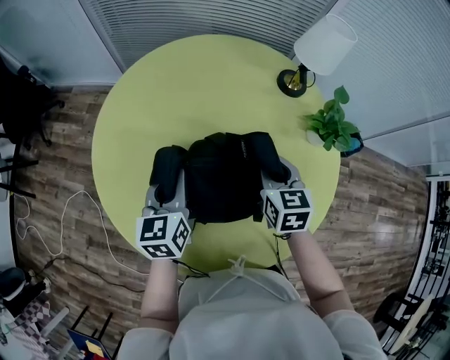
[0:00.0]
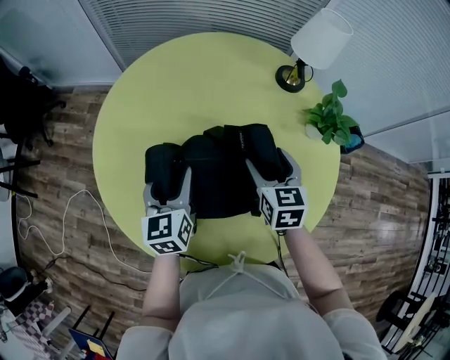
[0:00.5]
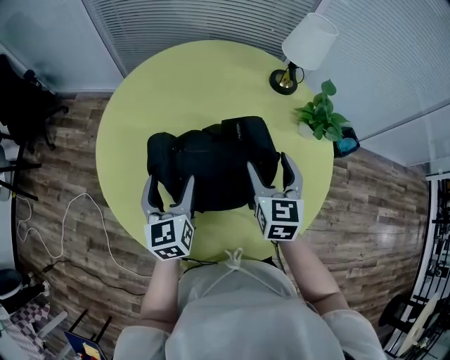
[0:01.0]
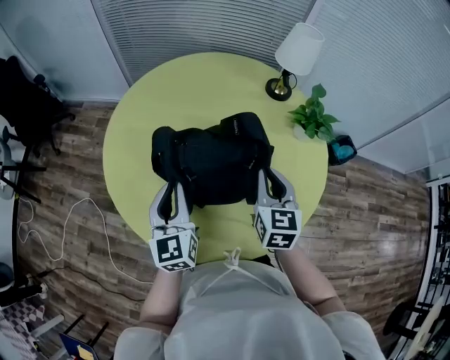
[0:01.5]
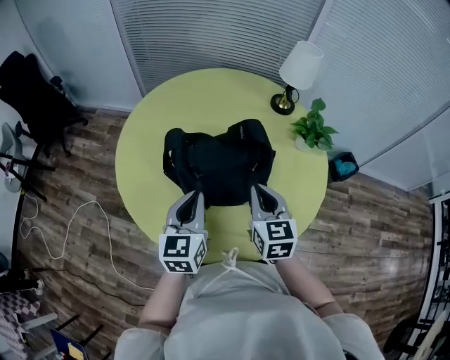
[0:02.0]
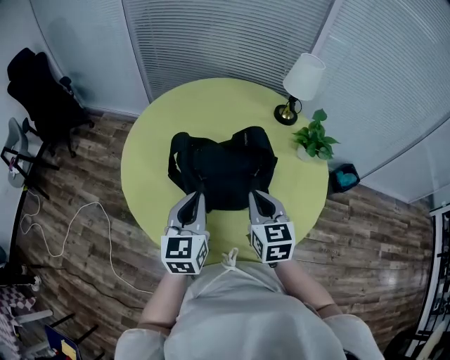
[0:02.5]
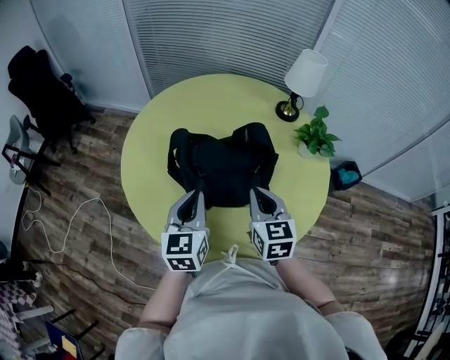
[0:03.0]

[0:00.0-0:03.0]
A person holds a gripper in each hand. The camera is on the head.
0:00.0 to 0:01.5: The grippers both shift backward and upward by about 15 cm. The left gripper opens, then closes once more; the right gripper opens and closes again.
0:01.5 to 0:03.0: The grippers both shift backward by roughly 5 cm.

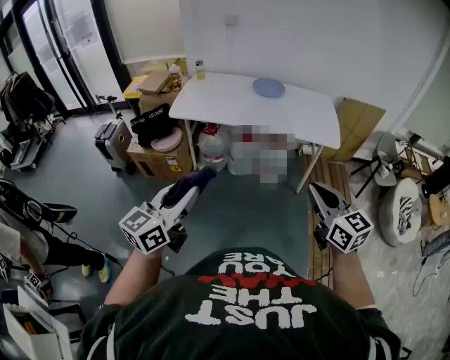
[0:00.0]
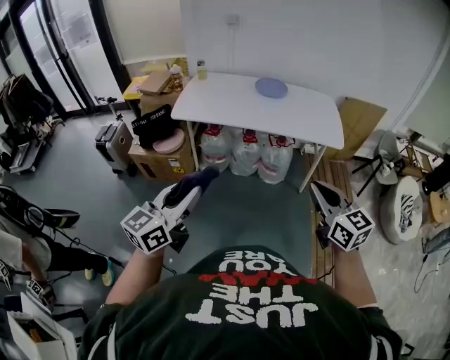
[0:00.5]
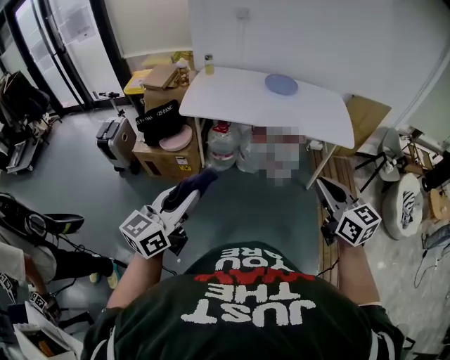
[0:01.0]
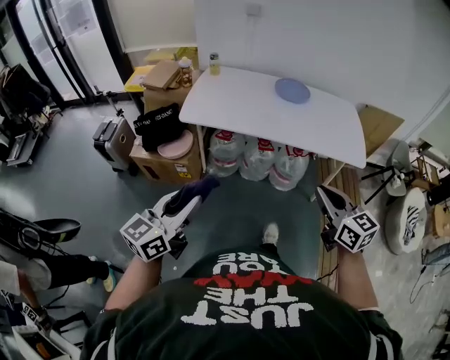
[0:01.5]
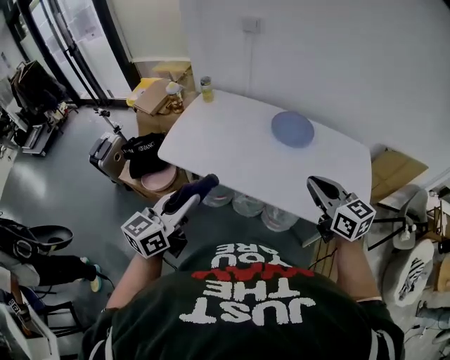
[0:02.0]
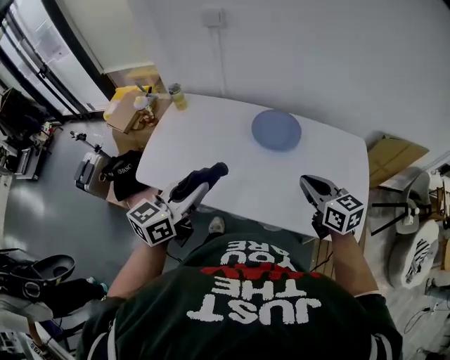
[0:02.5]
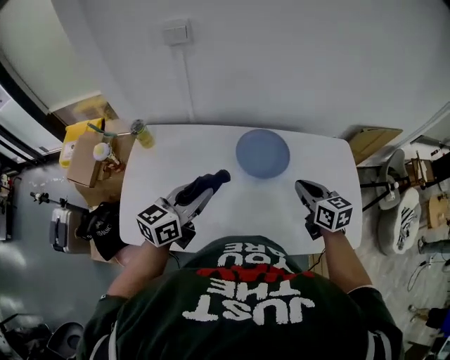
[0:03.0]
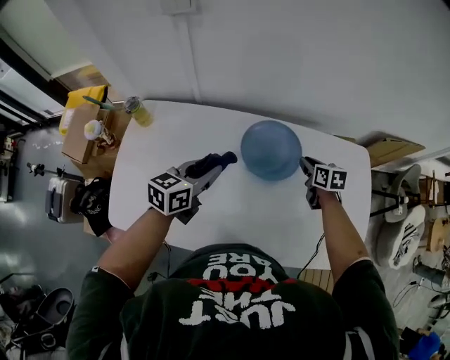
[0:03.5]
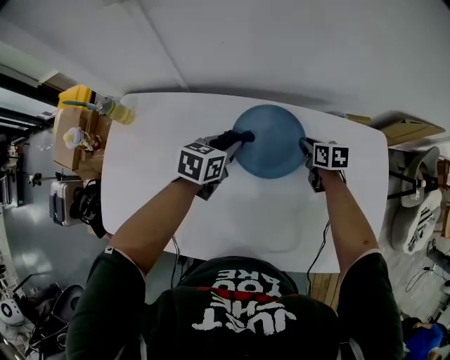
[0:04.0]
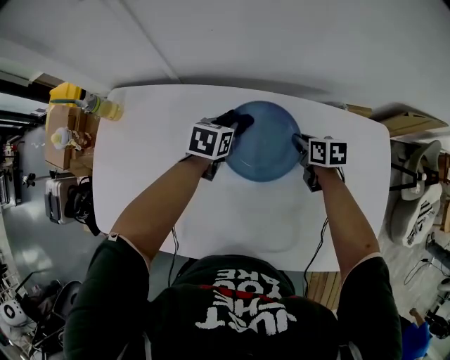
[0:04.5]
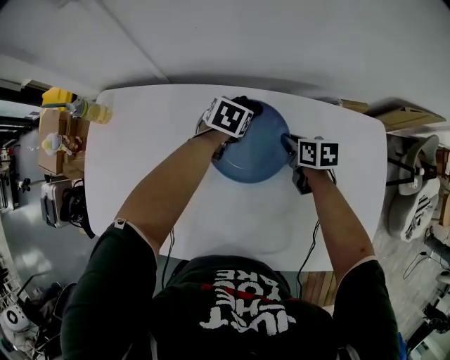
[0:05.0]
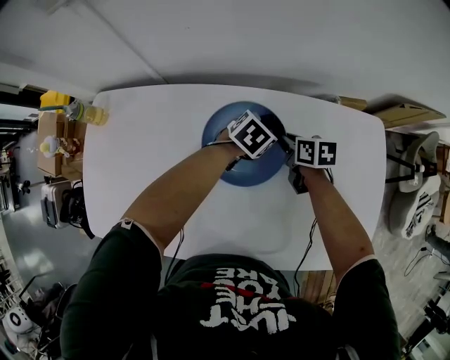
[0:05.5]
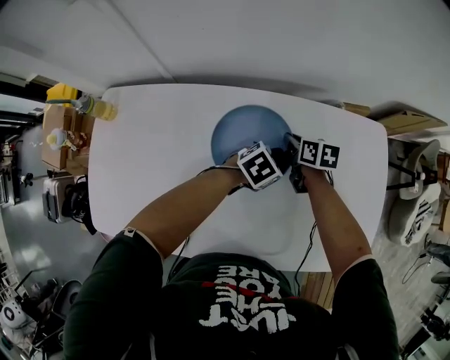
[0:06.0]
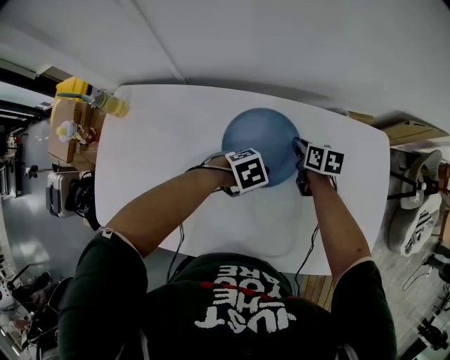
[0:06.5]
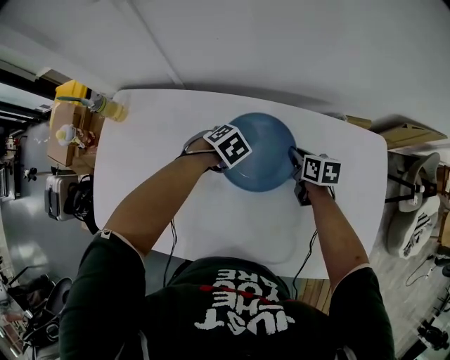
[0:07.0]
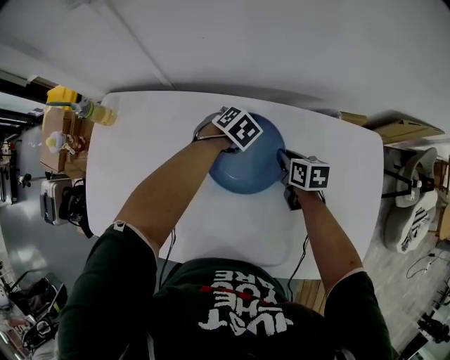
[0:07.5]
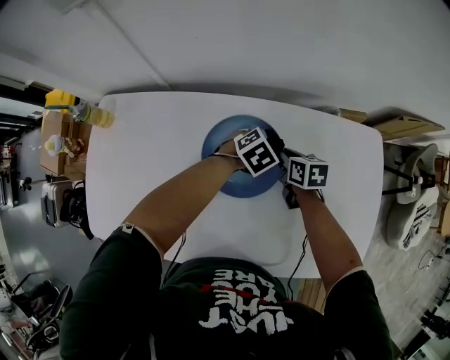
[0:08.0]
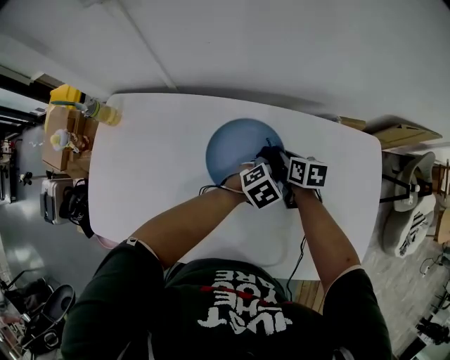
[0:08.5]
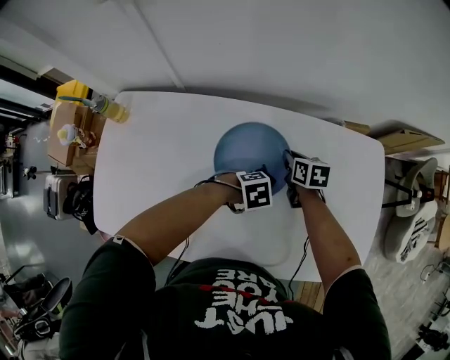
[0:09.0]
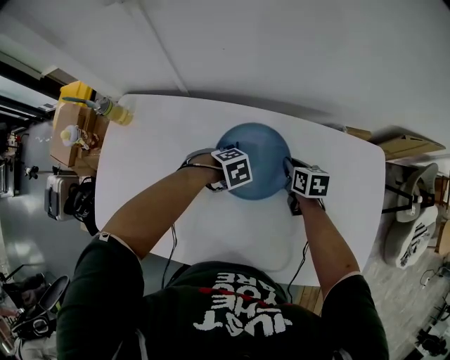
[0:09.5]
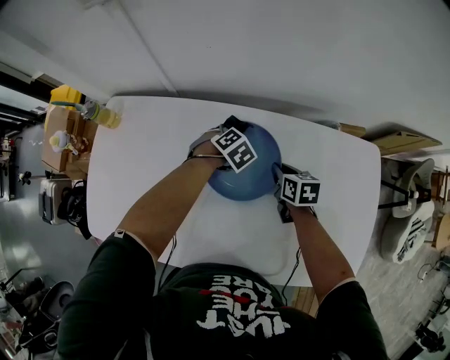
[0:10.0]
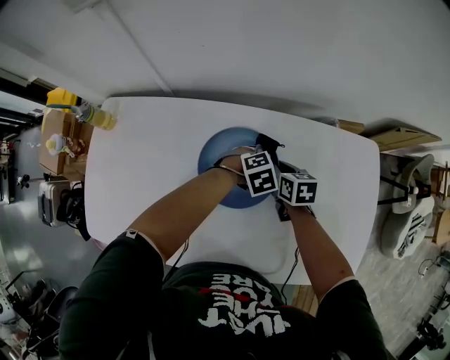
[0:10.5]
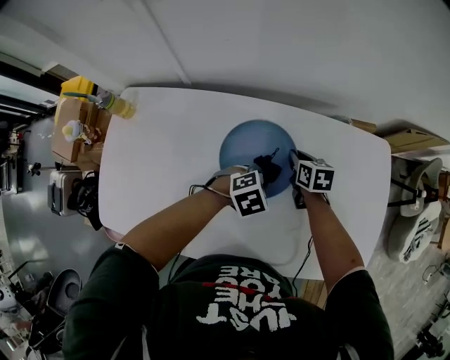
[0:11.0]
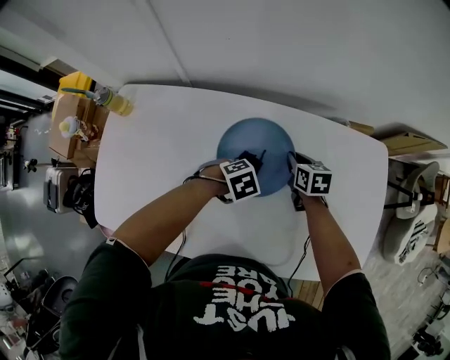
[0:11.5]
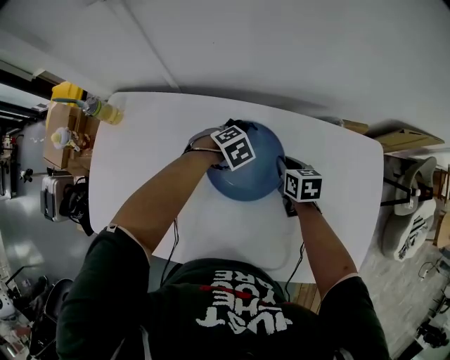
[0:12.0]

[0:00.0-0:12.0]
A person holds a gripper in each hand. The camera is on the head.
0:00.0 to 0:02.0: The pair of grippers is taken forward, some 50 cm.
0:02.0 to 0:04.0: The two grippers travel together, approximately 50 cm. The left gripper tilts its fingers roughly 30 degrees downward, while the right gripper tips its fingers downward by some 40 degrees.
0:04.0 to 0:06.0: The left gripper shifts by approximately 20 cm, and changes its angle by some 40 degrees.
0:08.0 to 0:10.0: The left gripper shifts by approximately 15 cm, and changes its angle by about 20 degrees.

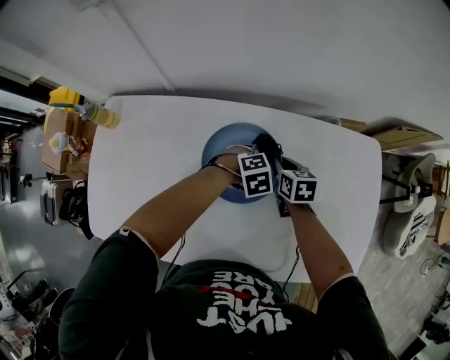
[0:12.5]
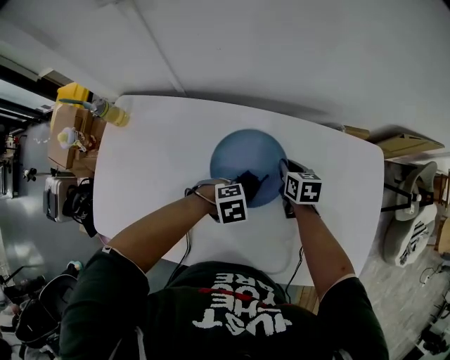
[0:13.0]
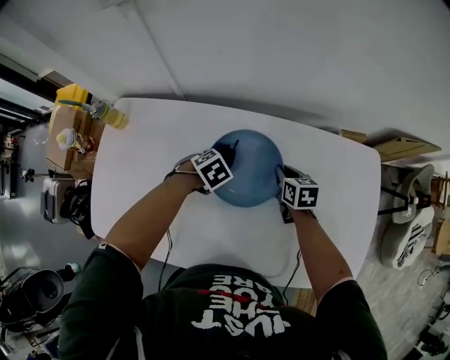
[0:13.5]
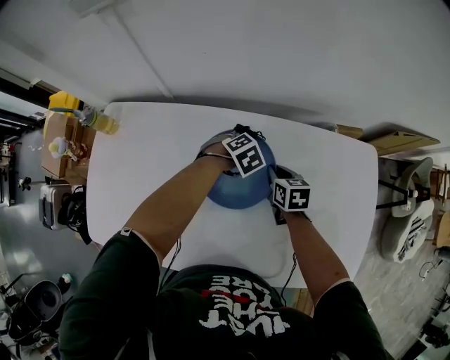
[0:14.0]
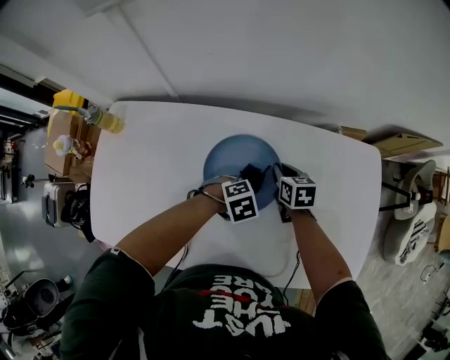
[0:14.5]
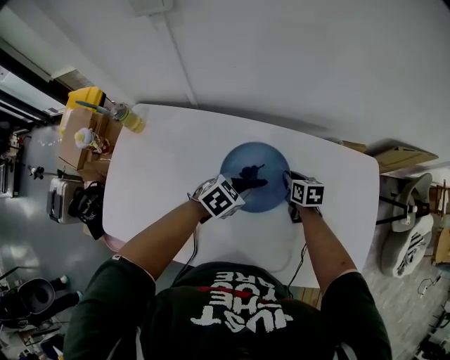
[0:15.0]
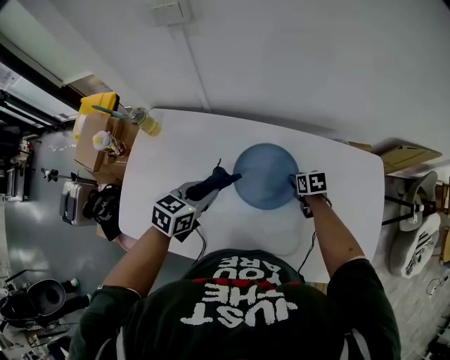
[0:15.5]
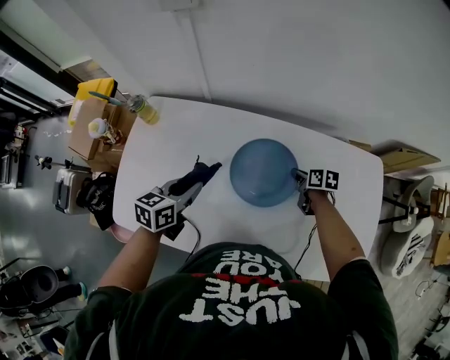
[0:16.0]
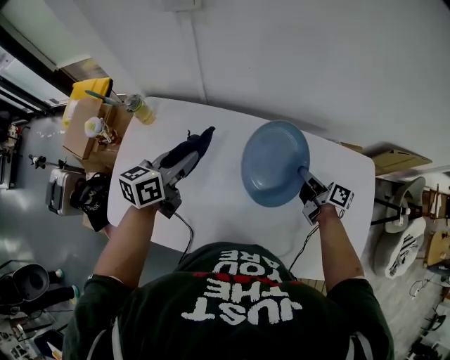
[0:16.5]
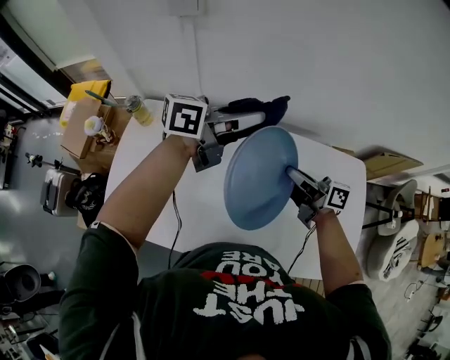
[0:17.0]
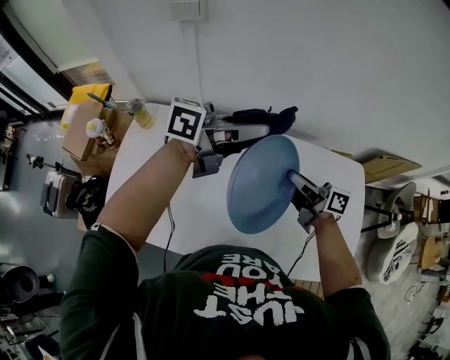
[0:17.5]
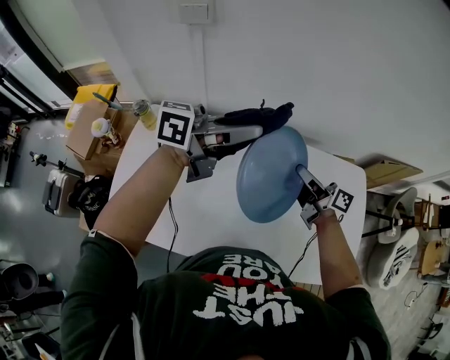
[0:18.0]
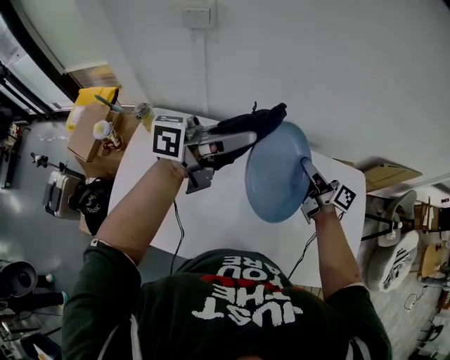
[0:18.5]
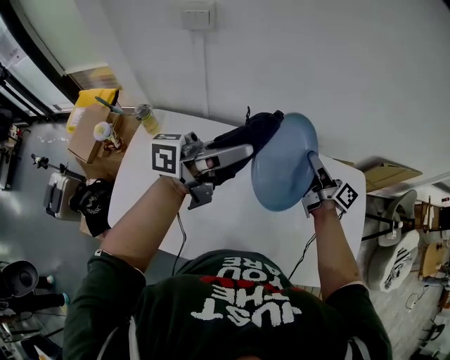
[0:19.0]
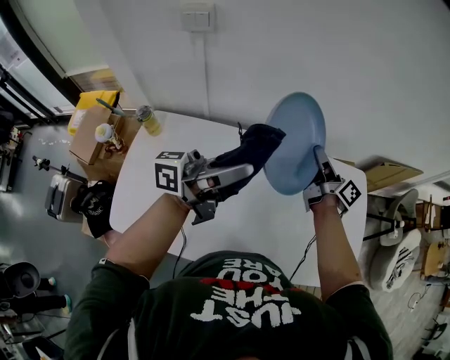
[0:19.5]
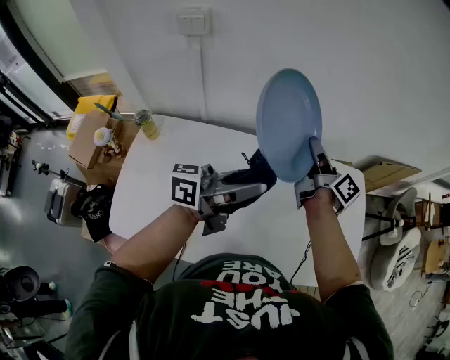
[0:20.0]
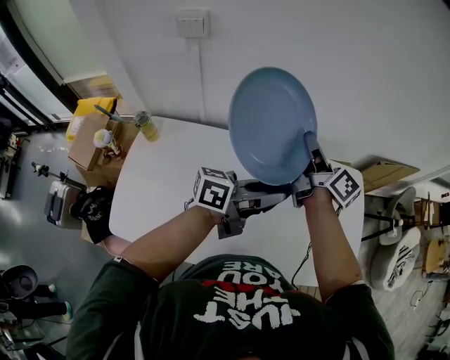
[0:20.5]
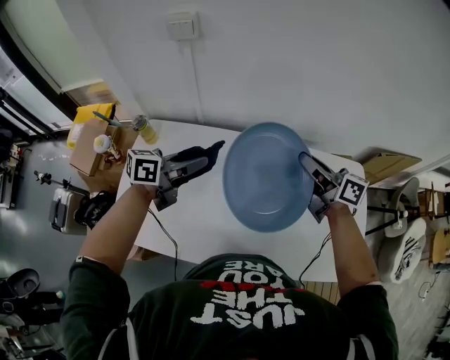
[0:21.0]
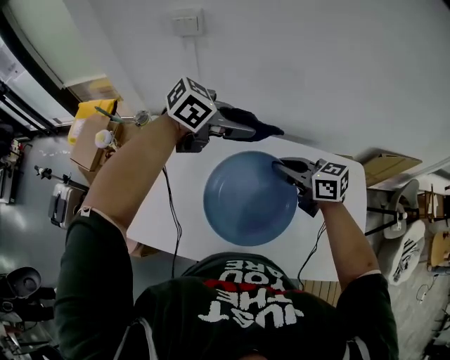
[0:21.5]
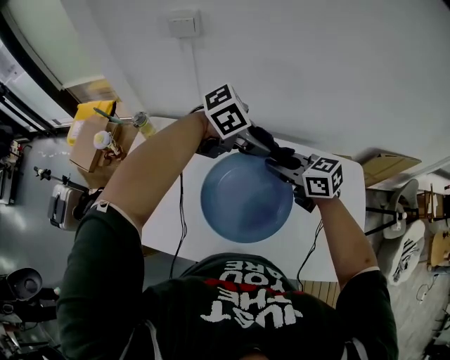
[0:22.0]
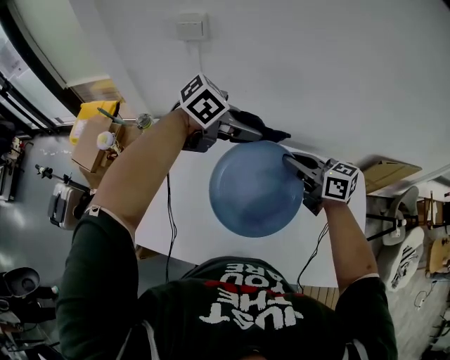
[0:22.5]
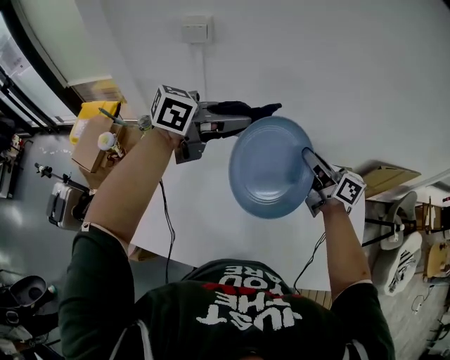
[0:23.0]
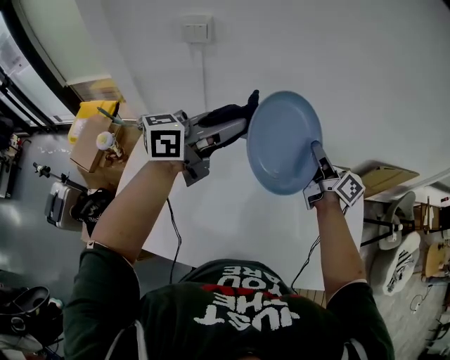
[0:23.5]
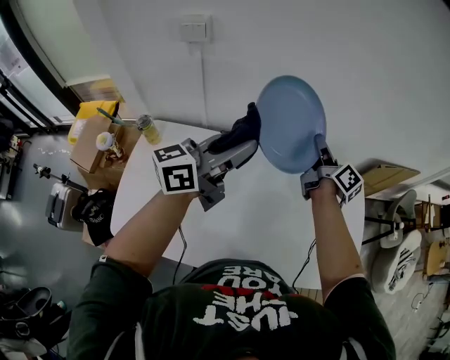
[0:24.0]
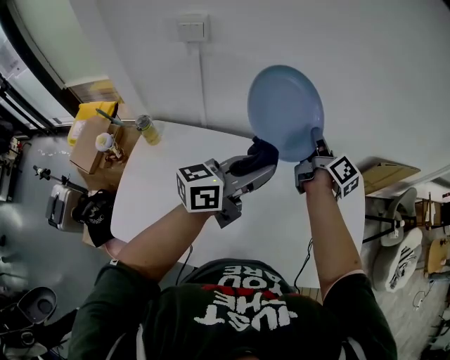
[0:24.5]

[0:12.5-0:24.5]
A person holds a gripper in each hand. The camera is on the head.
0:14.5 to 0:16.5: The left gripper is displaced upward by roughly 25 cm, and tips its fingers upward by roughly 60 degrees. Meanwhile the right gripper shifts approximately 10 cm upward, angles its fingers upward, by approximately 30 degrees, and opens, then closes again.
0:16.5 to 0:18.5: The two grippers go roughly 15 cm upward. The left gripper points its fingers some 30 degrees further upward.
0:18.5 to 0:20.5: The left gripper heads to the right and downward, covering some 15 cm. Meanwhile the right gripper heads upward, covering approximately 10 cm, and turns by some 20 degrees.
0:20.5 to 0:22.5: The right gripper rotates some 50 degrees; the left gripper moves up and down over about 10 cm, changing direction 3 times, and tips its fingers downward by roughly 30 degrees.
0:22.5 to 0:24.5: The right gripper shifts by some 15 cm, and turns by roughly 60 degrees, while the left gripper moves roughly 10 cm upward and comes back, and tilts its fingers some 30 degrees upward.
